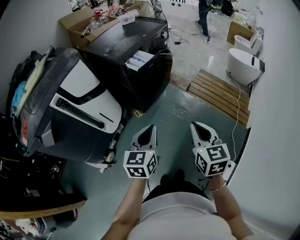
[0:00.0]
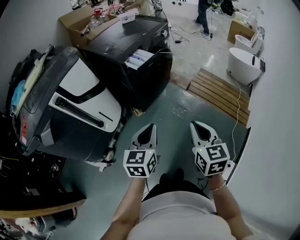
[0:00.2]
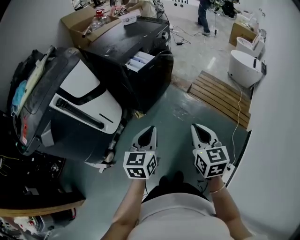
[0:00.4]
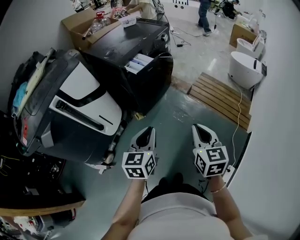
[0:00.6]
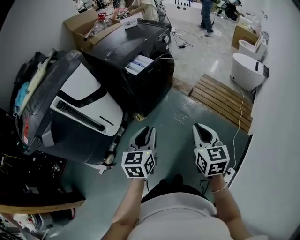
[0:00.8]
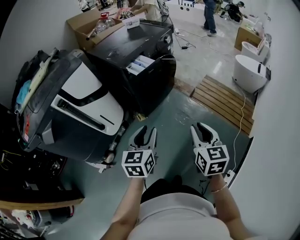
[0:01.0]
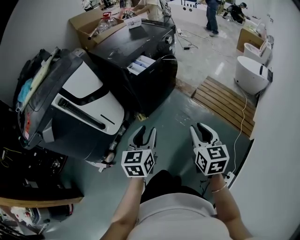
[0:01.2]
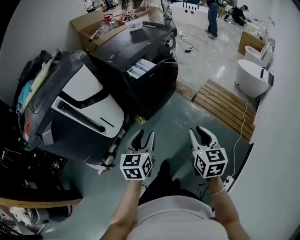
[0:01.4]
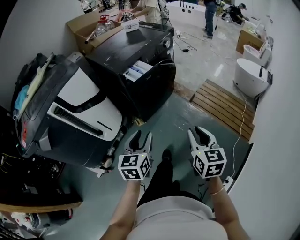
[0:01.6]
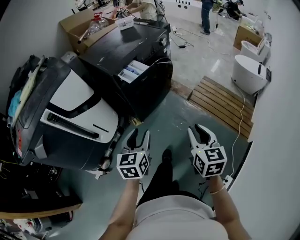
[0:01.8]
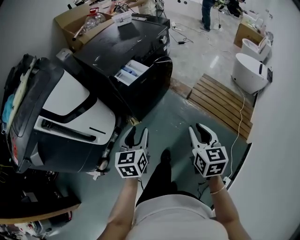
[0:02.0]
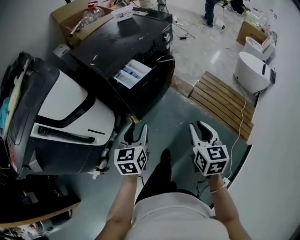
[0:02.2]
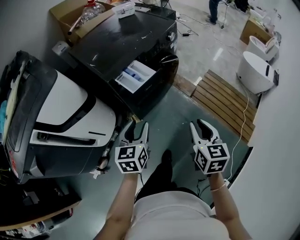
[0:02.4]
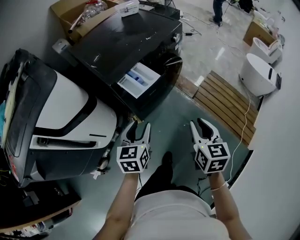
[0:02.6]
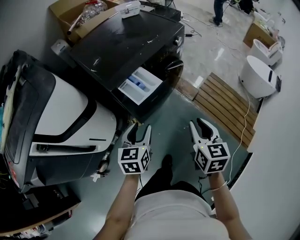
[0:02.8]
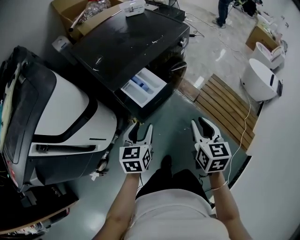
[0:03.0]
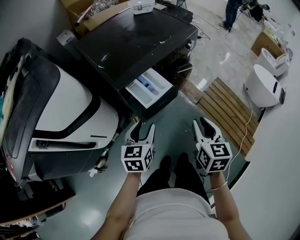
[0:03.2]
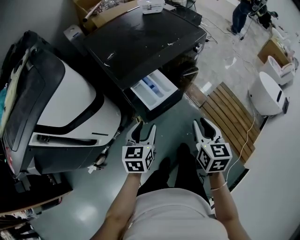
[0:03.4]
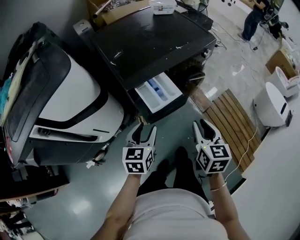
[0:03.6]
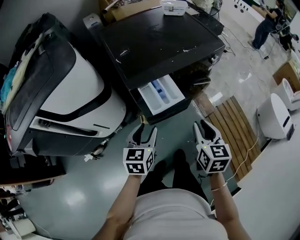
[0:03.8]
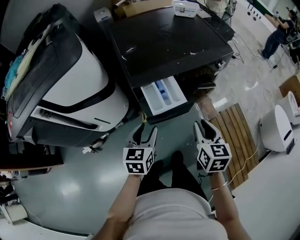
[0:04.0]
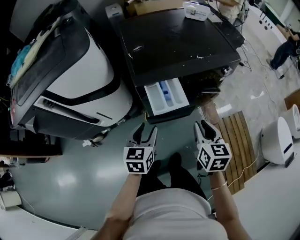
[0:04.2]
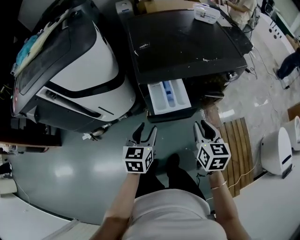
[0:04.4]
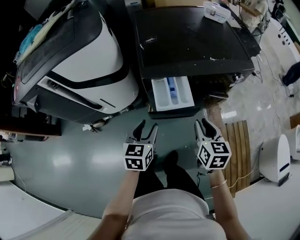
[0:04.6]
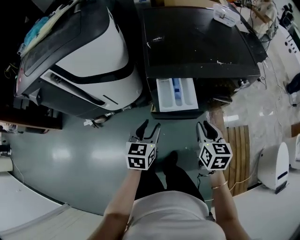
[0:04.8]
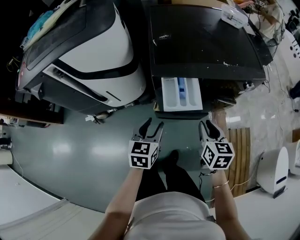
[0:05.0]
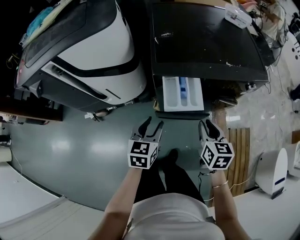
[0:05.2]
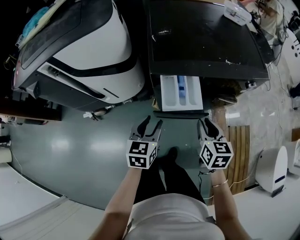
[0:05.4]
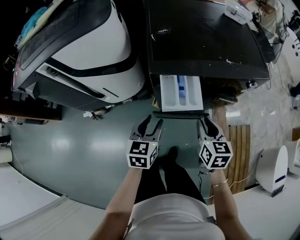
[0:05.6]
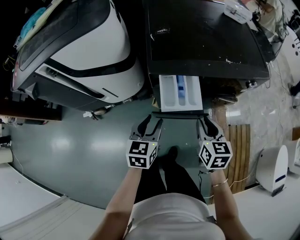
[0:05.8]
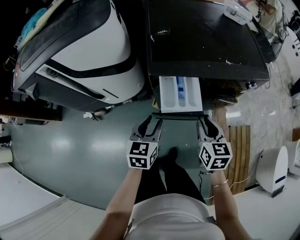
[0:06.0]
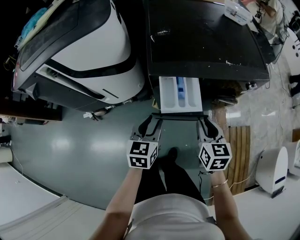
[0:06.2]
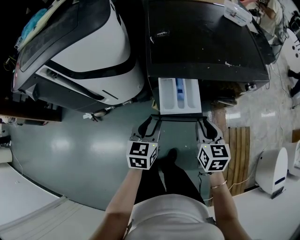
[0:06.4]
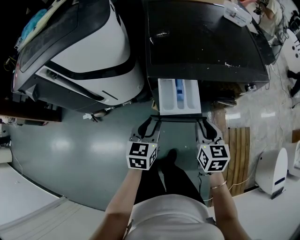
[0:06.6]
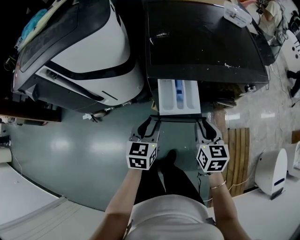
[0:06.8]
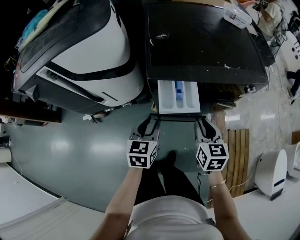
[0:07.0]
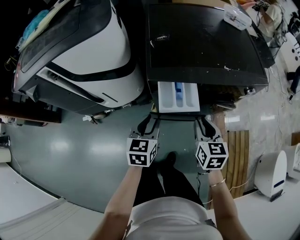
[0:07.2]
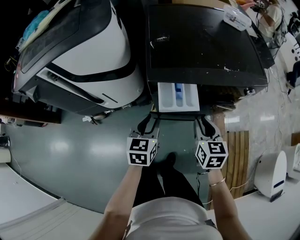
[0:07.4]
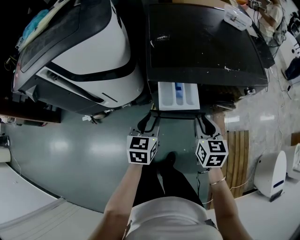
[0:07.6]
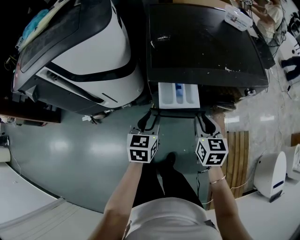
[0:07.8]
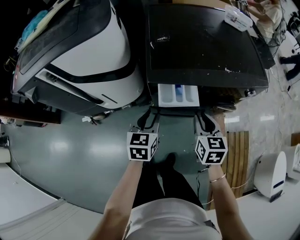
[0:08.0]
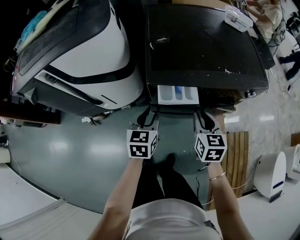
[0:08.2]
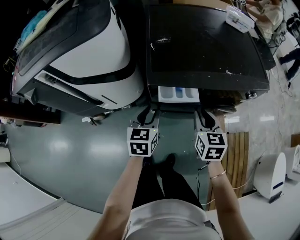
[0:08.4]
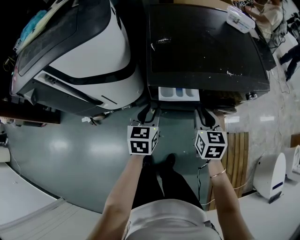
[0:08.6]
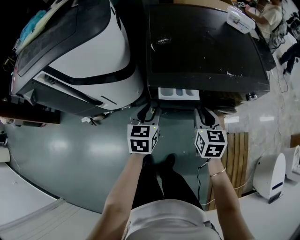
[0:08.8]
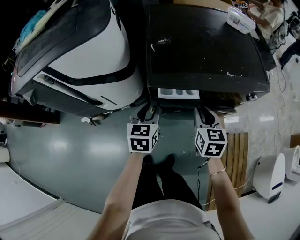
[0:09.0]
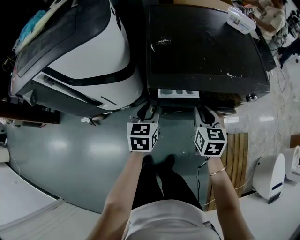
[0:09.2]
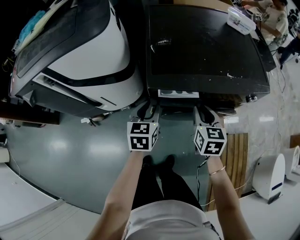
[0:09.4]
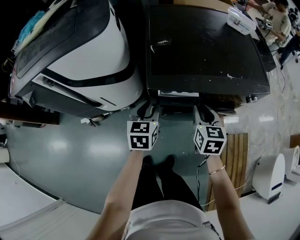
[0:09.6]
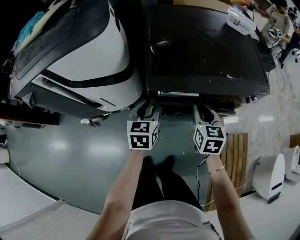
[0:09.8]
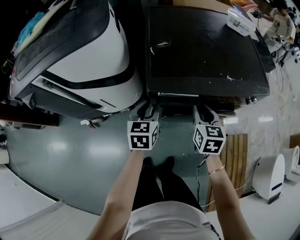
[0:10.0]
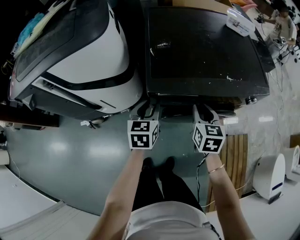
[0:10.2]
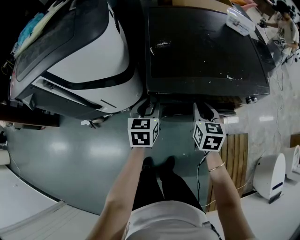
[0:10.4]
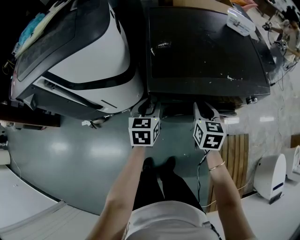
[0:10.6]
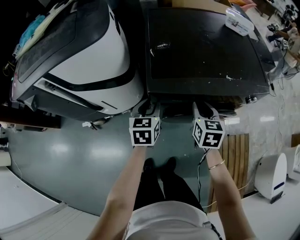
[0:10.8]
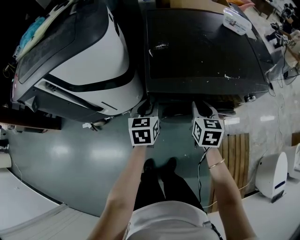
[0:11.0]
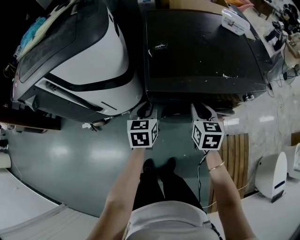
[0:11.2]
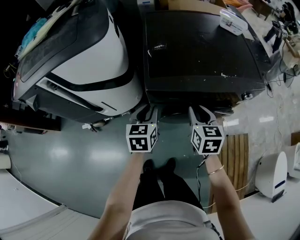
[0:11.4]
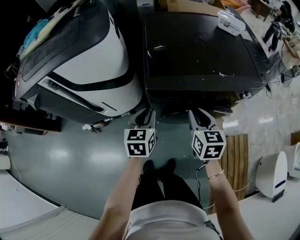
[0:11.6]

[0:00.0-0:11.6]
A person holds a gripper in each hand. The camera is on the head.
0:00.0 to 0:01.4: The left gripper opens. Meanwhile the right gripper goes about 5 cm to the right, and opens its fingers.
0:01.4 to 0:02.8: The grippers both shift forward by about 30 cm.
0:02.8 to 0:04.4: The right gripper ends up about 15 cm from where it was, and turns by approximately 30 degrees, while the left gripper changes its angle by about 30 degrees.
0:04.4 to 0:05.8: The right gripper changes place by about 5 cm.
0:05.8 to 0:07.2: The grippers make only small movements.
0:07.2 to 0:08.8: Both grippers move forward, some 5 cm.
0:08.8 to 0:10.2: The grippers move only a little.
0:10.2 to 0:11.6: The left gripper changes place by approximately 5 cm; the right gripper travels backward by approximately 5 cm.

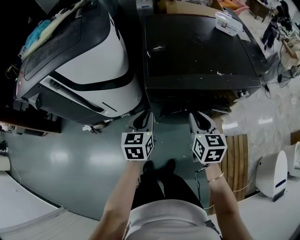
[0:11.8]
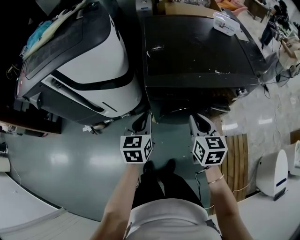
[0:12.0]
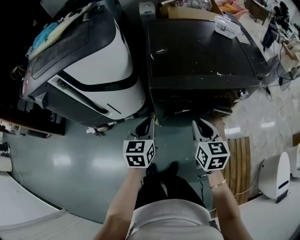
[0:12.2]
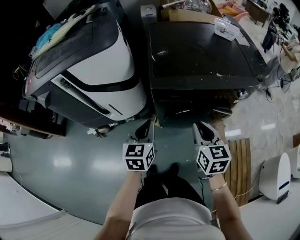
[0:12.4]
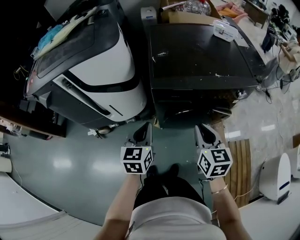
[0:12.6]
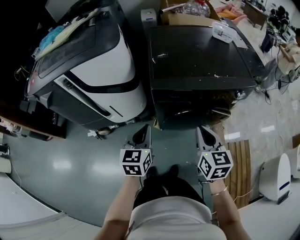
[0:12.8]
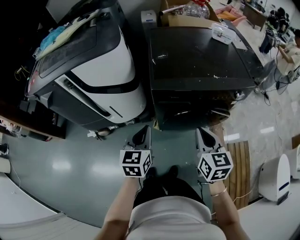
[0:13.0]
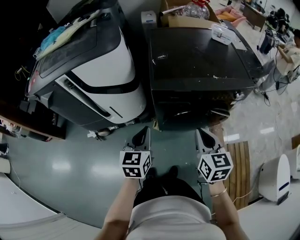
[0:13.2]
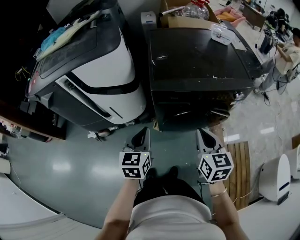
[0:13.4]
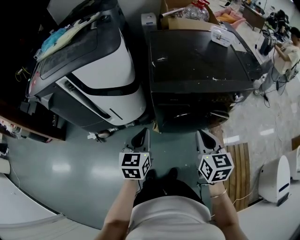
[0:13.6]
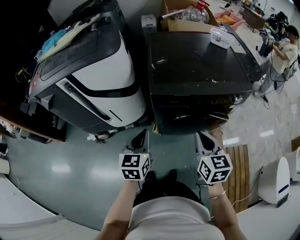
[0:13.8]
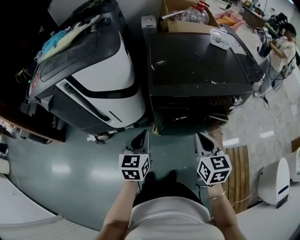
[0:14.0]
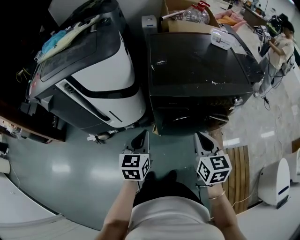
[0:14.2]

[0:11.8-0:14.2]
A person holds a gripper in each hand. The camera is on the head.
0:11.8 to 0:13.0: Both grippers move backward, some 10 cm.
0:13.0 to 0:14.2: Both grippers stay put.

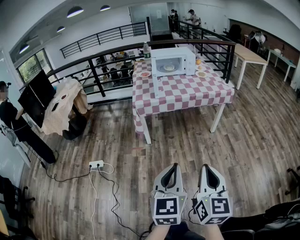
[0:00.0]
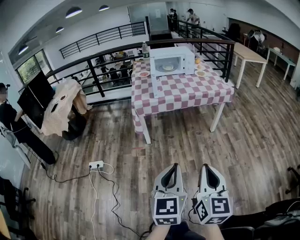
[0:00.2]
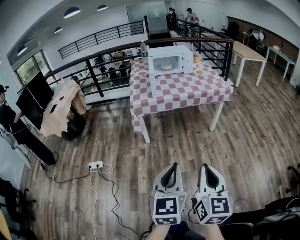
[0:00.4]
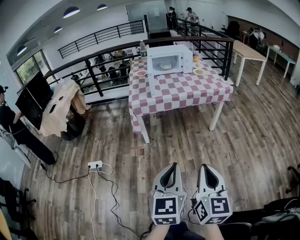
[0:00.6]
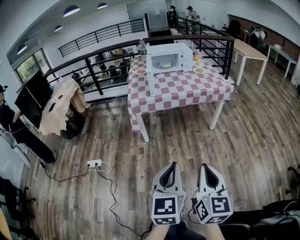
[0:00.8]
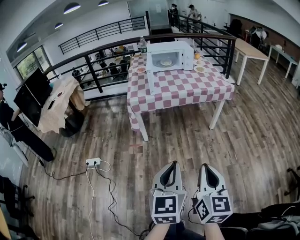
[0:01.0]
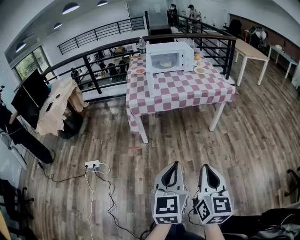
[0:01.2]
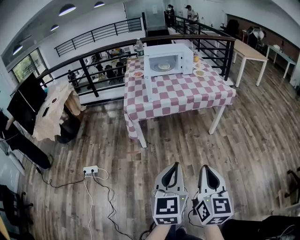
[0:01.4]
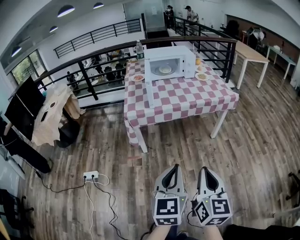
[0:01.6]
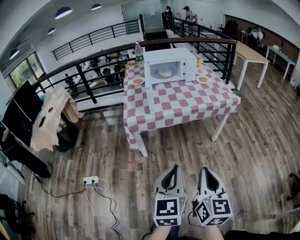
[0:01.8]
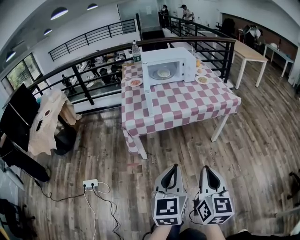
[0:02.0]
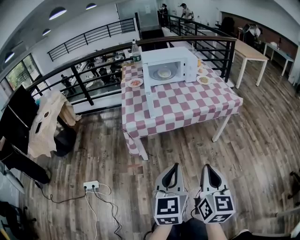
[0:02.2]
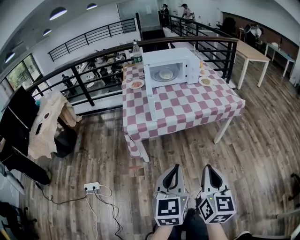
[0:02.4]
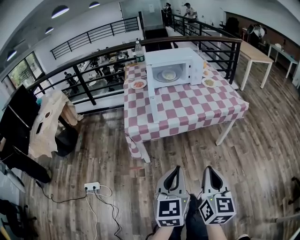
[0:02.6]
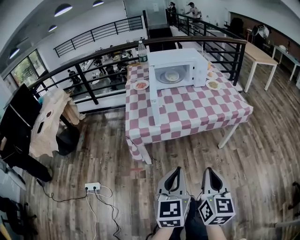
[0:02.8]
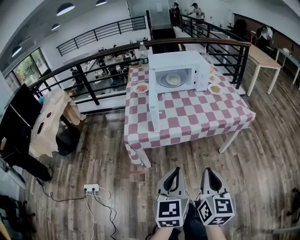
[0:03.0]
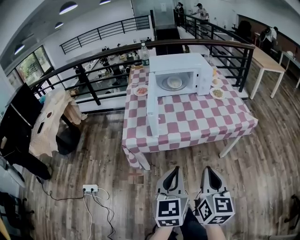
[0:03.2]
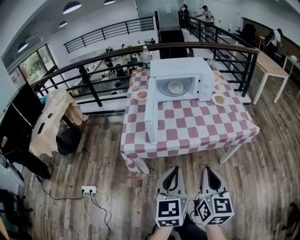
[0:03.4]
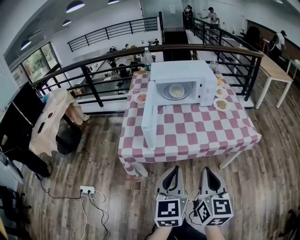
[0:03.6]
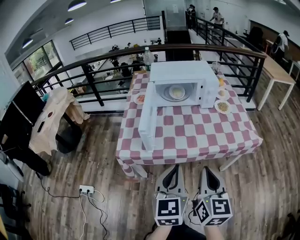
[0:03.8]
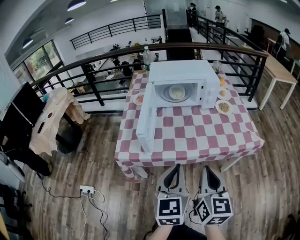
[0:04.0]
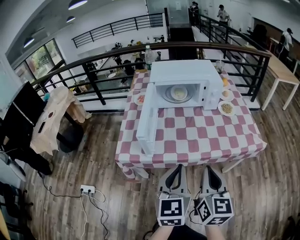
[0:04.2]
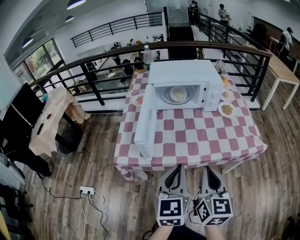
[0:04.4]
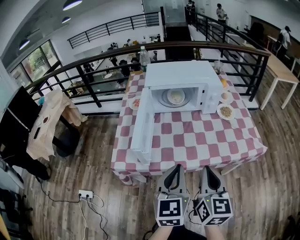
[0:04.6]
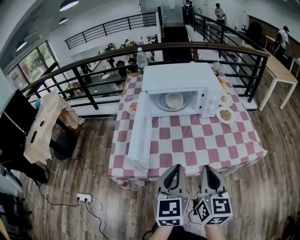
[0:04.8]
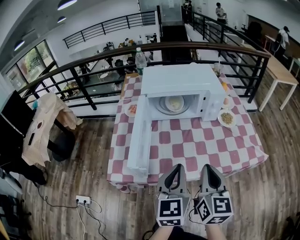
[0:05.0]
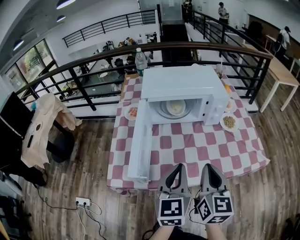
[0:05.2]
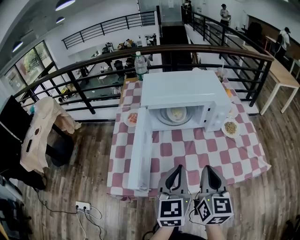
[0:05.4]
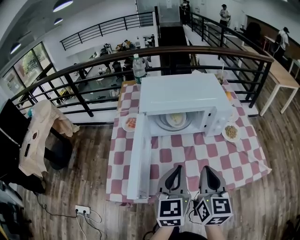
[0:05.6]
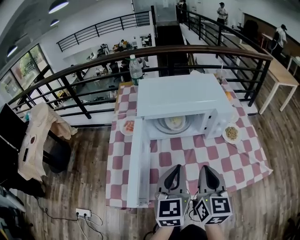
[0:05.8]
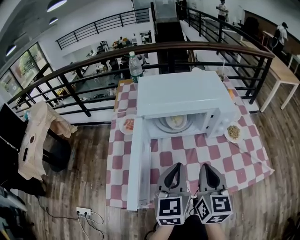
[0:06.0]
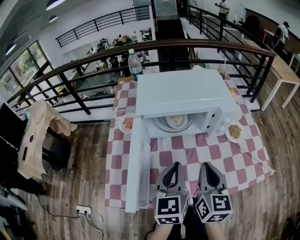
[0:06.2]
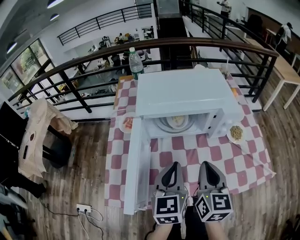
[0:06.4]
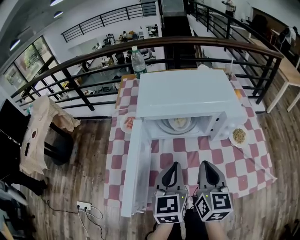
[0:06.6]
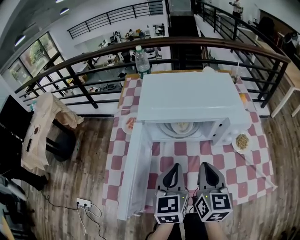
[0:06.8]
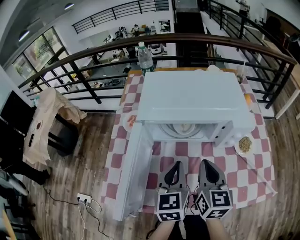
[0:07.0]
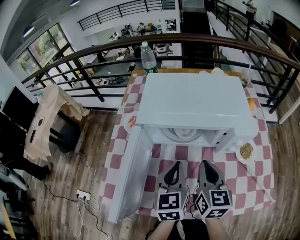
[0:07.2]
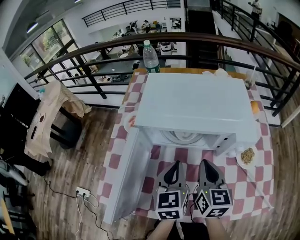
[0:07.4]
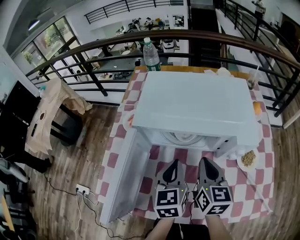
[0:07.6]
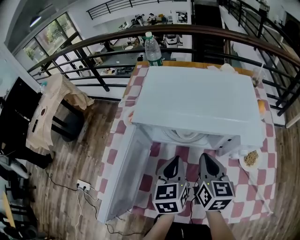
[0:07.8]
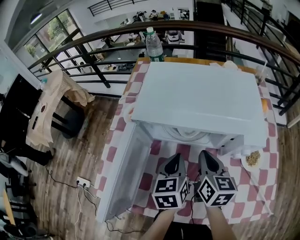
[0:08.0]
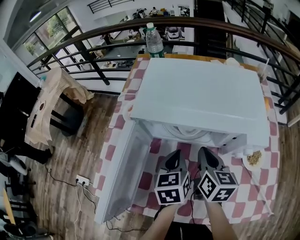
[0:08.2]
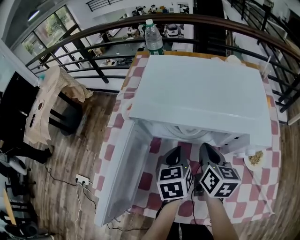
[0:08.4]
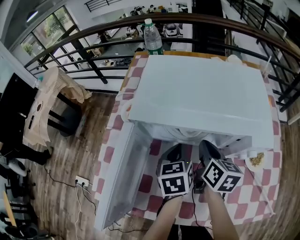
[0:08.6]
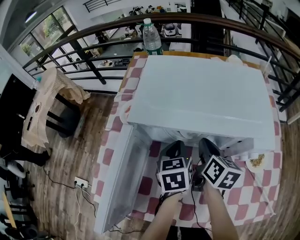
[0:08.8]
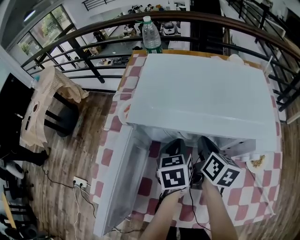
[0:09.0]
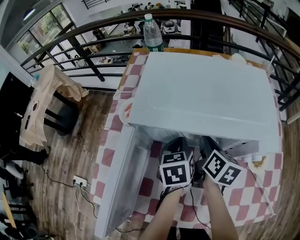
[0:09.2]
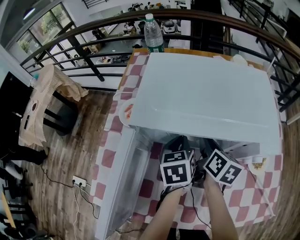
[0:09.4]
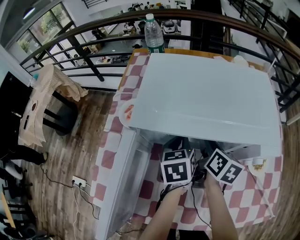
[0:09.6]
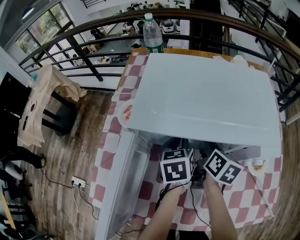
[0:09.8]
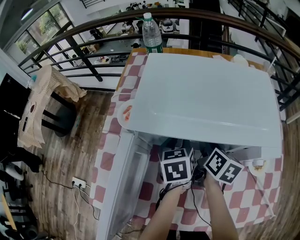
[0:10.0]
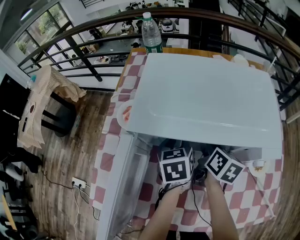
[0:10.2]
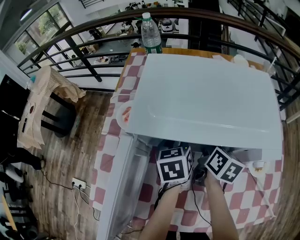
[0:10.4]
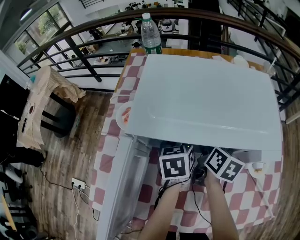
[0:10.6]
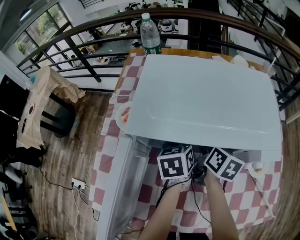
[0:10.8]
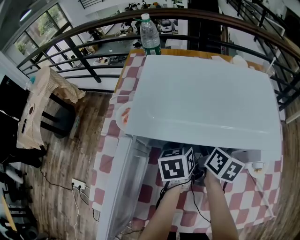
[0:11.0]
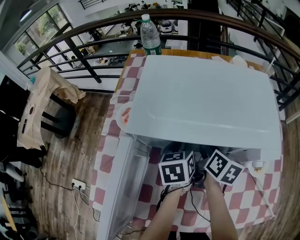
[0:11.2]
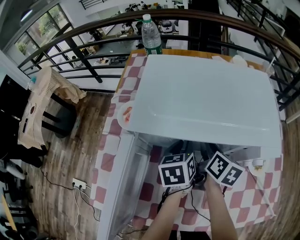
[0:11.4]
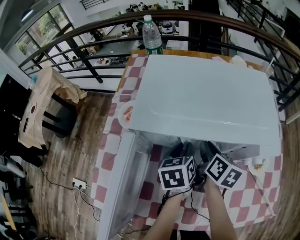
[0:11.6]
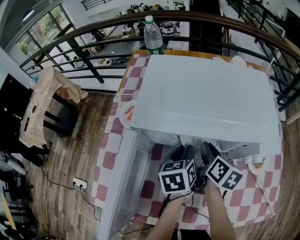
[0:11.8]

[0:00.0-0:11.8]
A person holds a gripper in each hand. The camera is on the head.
0:00.0 to 0:01.4: Both grippers travel together forward, approximately 10 cm.
0:01.4 to 0:03.0: The grippers both shift forward by approximately 25 cm.
0:03.0 to 0:04.4: Both grippers travel together forward, some 20 cm.
0:04.4 to 0:06.0: The two grippers go some 25 cm forward.
0:06.0 to 0:07.4: The right gripper heads forward, covering roughly 15 cm; the left gripper heads forward and downward, covering roughly 15 cm.
0:07.4 to 0:08.8: The grippers both shift forward and downward by approximately 15 cm. The right gripper rotates about 20 degrees.
0:08.8 to 0:10.4: The right gripper changes place by approximately 5 cm, and opens up. The left gripper goes about 5 cm forward, and opens its fingers.
0:10.4 to 0:11.8: The left gripper heads backward, covering roughly 5 cm.
